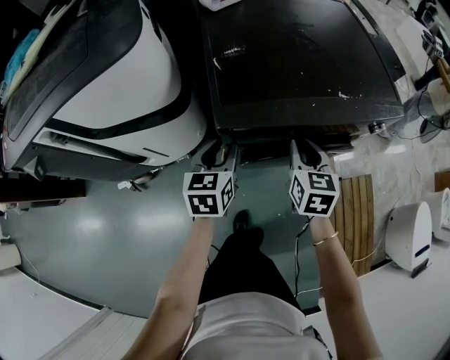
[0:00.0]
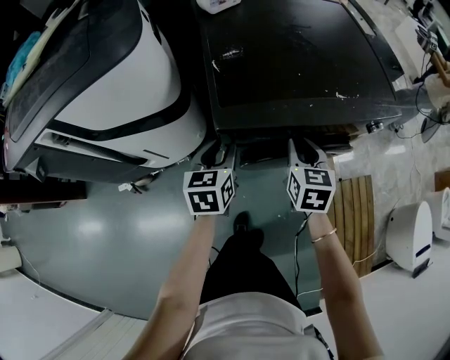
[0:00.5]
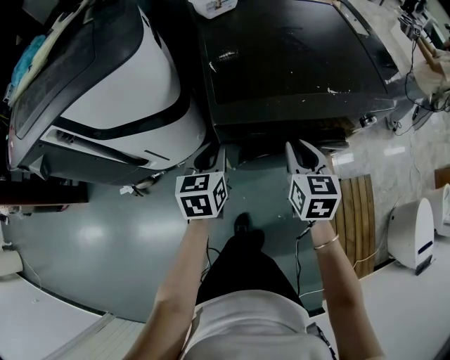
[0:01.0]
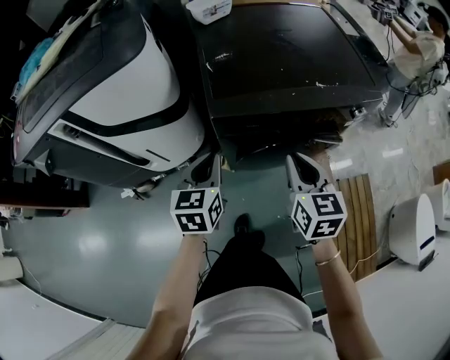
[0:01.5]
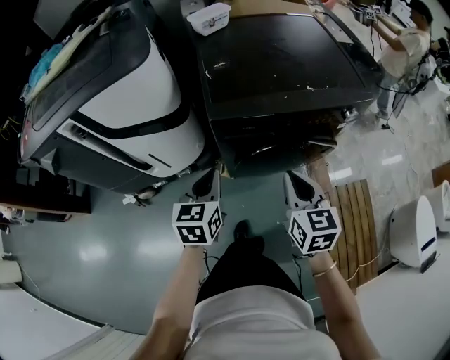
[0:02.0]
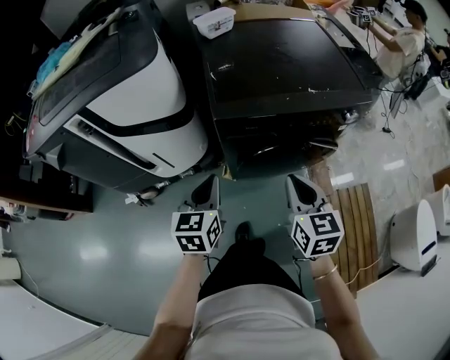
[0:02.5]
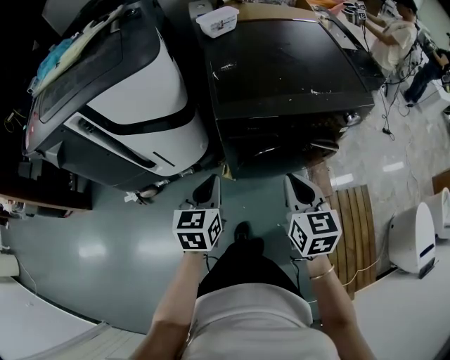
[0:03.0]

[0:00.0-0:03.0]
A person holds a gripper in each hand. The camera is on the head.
0:00.0 to 0:01.5: The grippers both shift backward and upward by some 10 cm. The left gripper closes.
0:01.5 to 0:03.0: Both grippers travel together backward, roughly 5 cm.

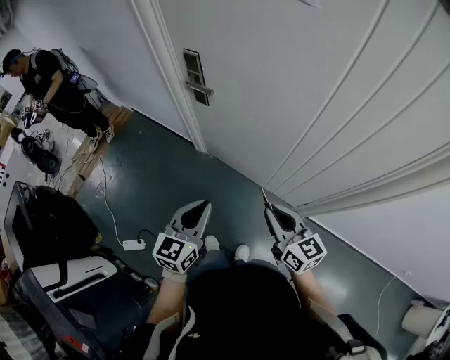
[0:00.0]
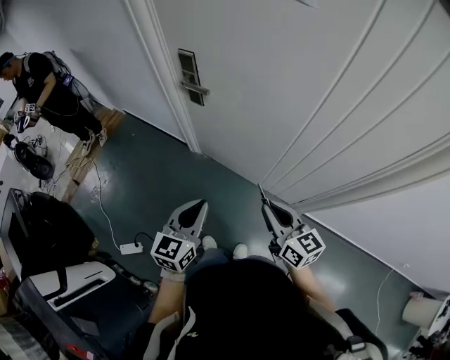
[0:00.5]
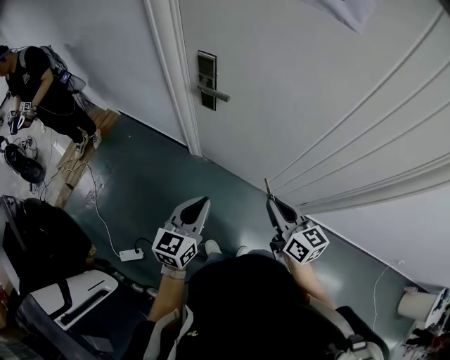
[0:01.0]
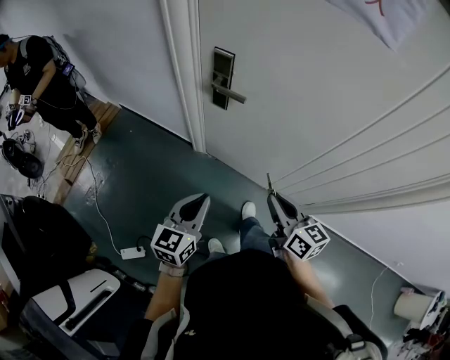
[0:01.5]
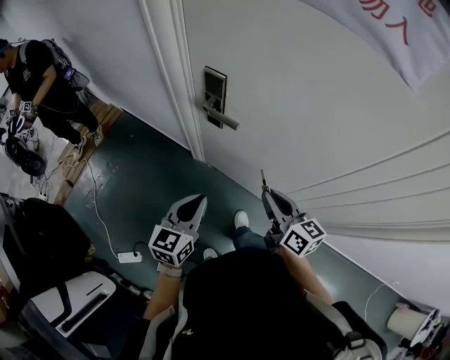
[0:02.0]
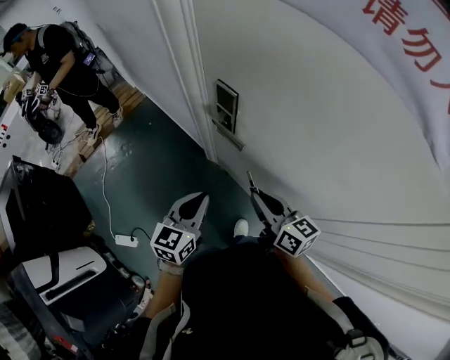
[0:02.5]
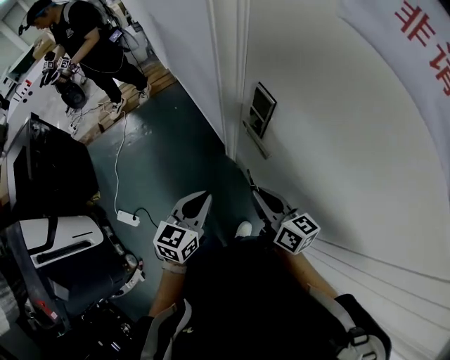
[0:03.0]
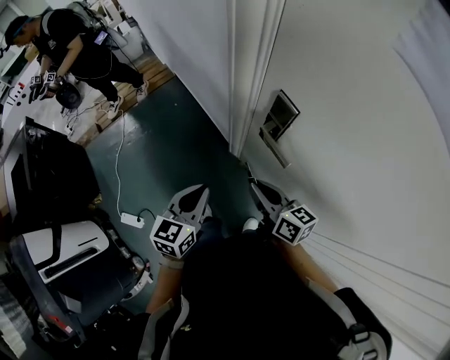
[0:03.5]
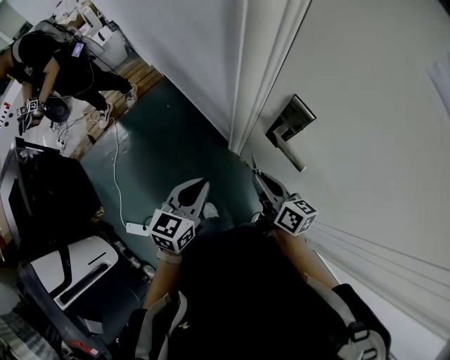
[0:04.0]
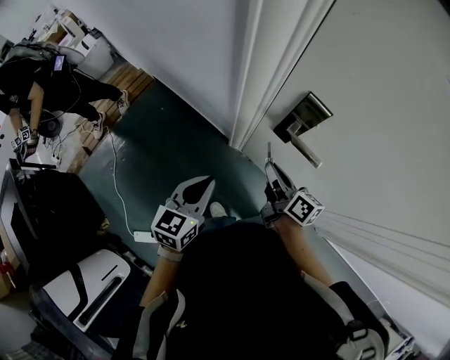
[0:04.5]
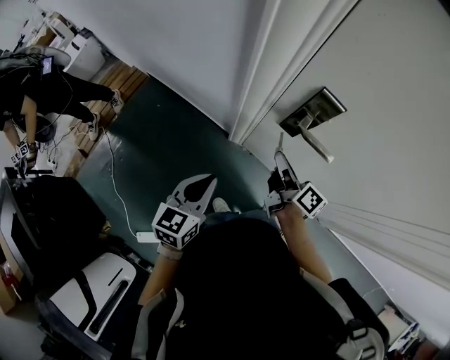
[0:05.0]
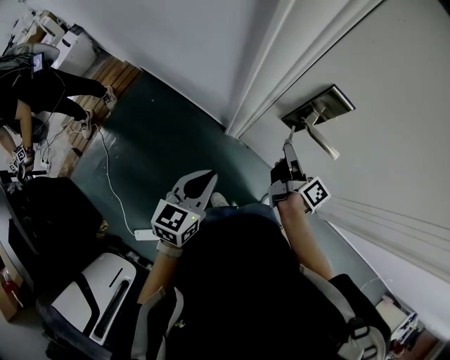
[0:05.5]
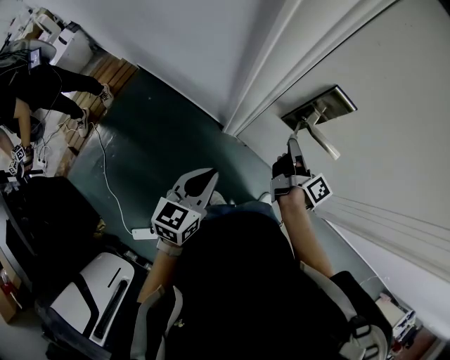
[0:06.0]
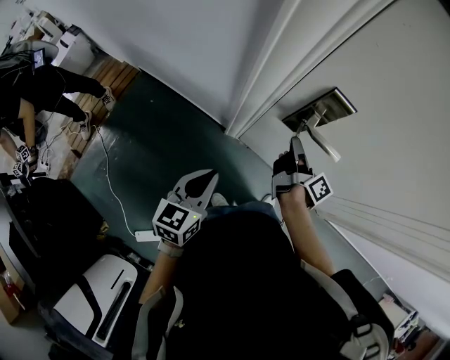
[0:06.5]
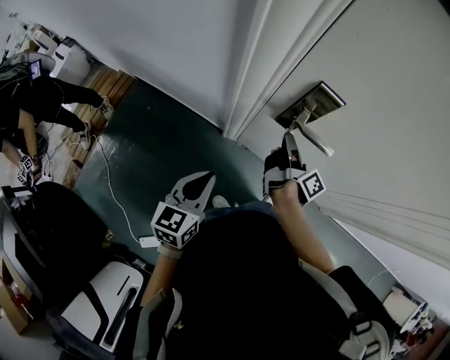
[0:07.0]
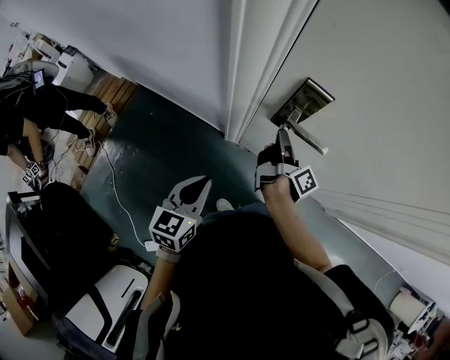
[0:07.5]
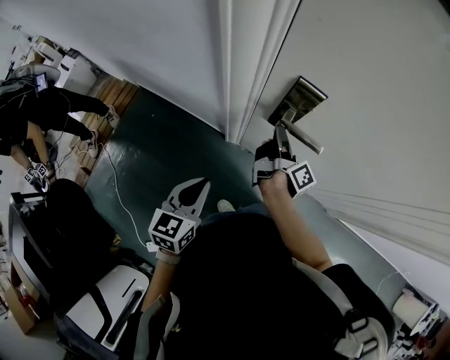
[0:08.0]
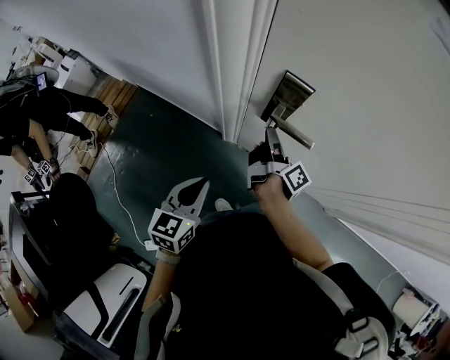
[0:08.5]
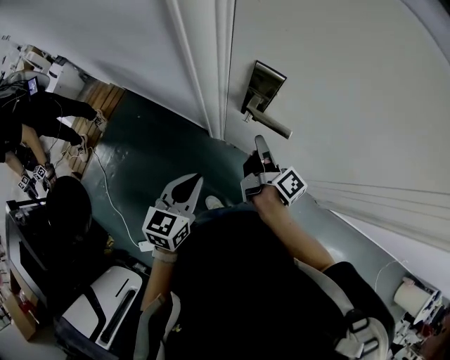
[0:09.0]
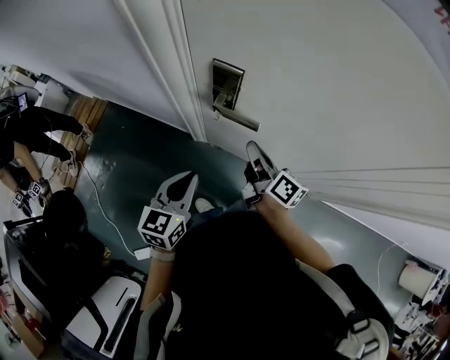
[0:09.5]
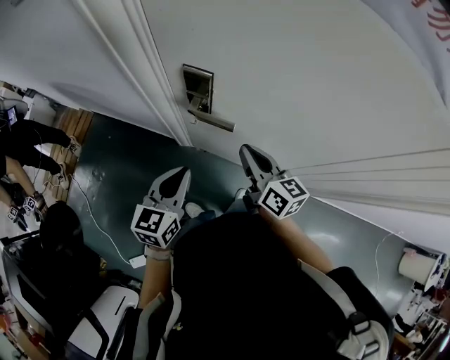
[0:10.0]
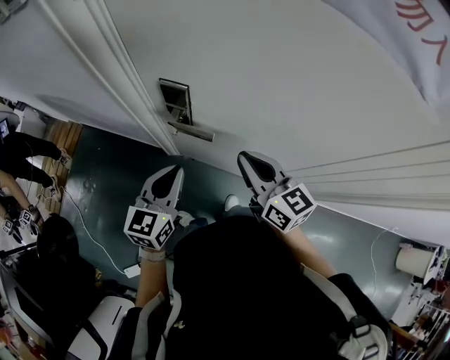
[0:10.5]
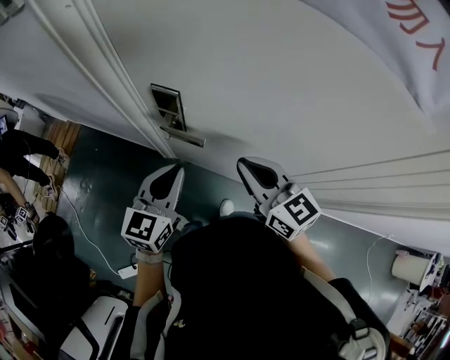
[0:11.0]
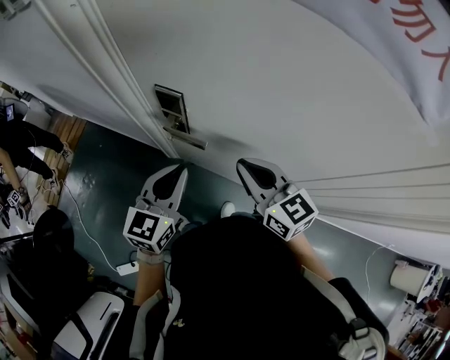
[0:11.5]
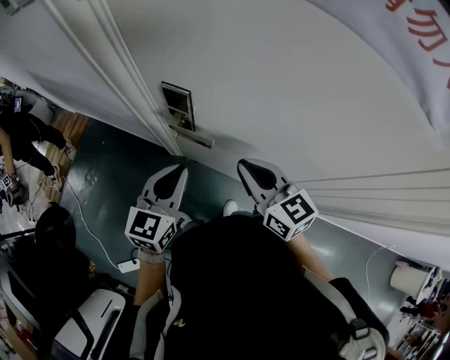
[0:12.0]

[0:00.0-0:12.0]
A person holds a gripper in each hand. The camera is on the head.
0:00.0 to 0:02.0: The grippers both shift forward and to the left by some 25 cm.
0:02.0 to 0:04.0: The left gripper ends up approximately 20 cm from where it was. Meanwhile the right gripper changes place by about 25 cm, and swivels roughly 20 degrees.
0:04.0 to 0:06.0: The right gripper moves some 10 cm, and swivels some 50 degrees. Meanwhile the left gripper ends up about 10 cm from where it was.
0:06.0 to 0:08.0: The grippers stay close to where they were, moving slightly.
0:08.0 to 0:10.0: The left gripper shifts some 15 cm to the right. Meanwhile the right gripper goes about 20 cm to the right, backward and upward, and twists some 60 degrees counterclockwise, seen from behind.
0:10.0 to 0:12.0: The right gripper goes some 5 cm upward, and swivels about 20 degrees. The left gripper travels to the right and upward by approximately 10 cm.

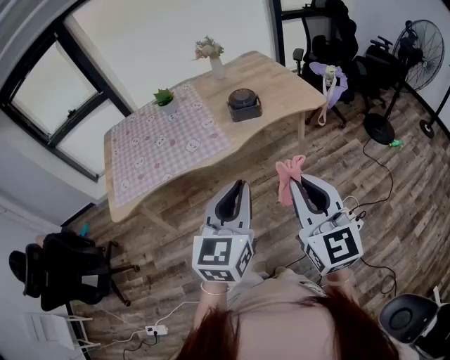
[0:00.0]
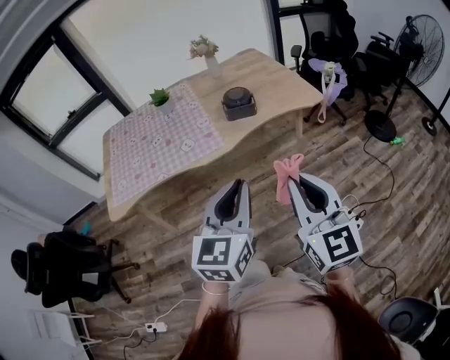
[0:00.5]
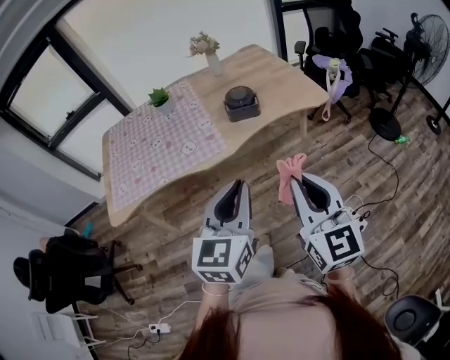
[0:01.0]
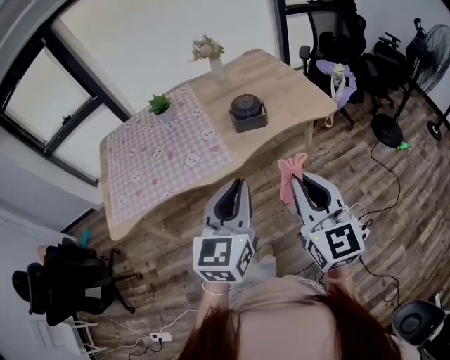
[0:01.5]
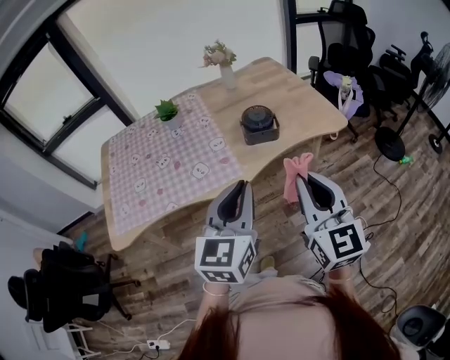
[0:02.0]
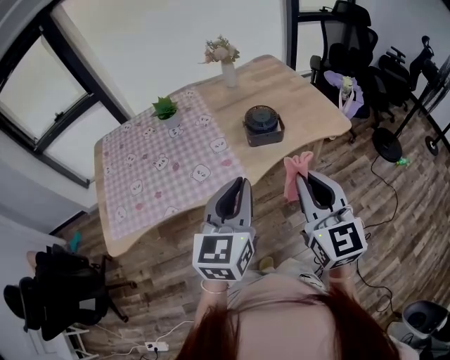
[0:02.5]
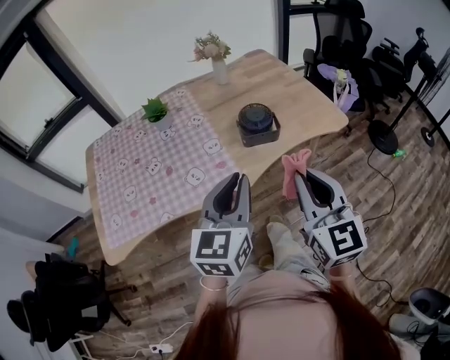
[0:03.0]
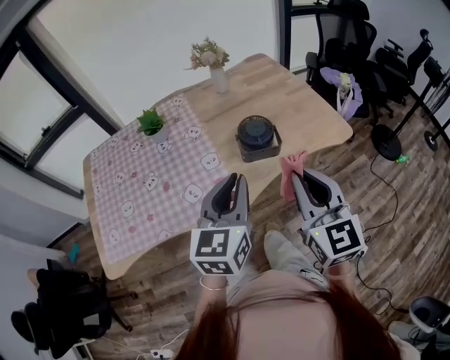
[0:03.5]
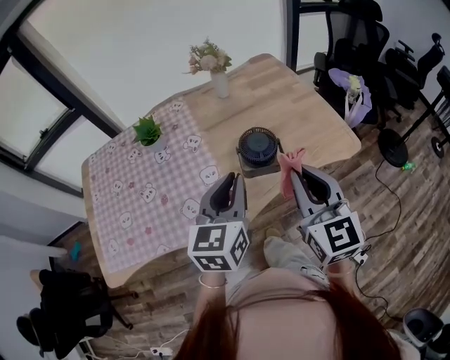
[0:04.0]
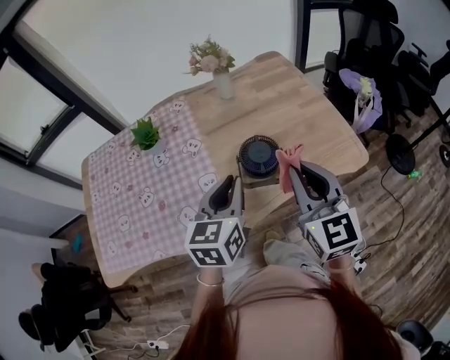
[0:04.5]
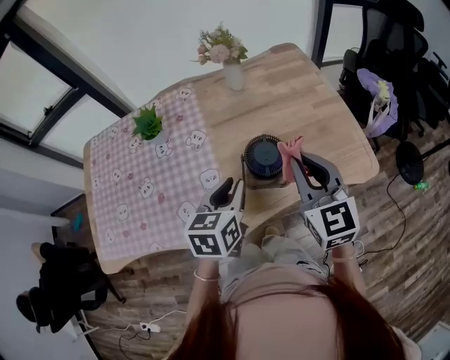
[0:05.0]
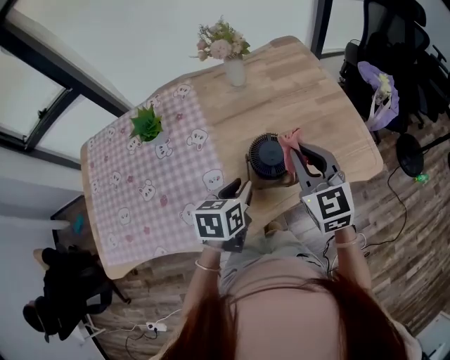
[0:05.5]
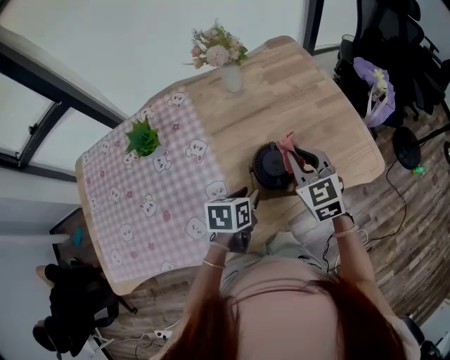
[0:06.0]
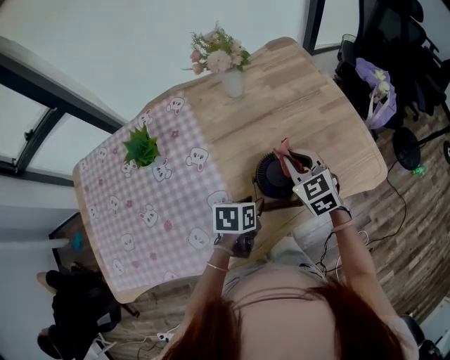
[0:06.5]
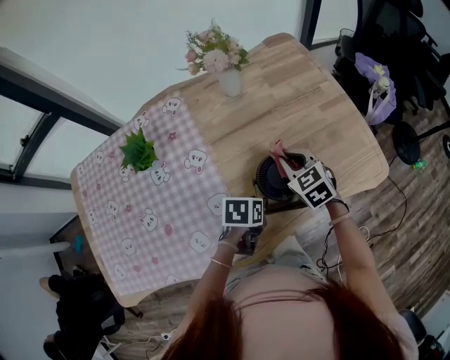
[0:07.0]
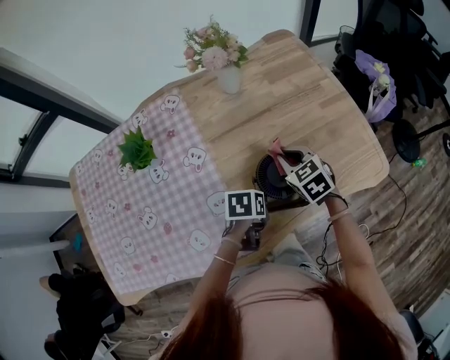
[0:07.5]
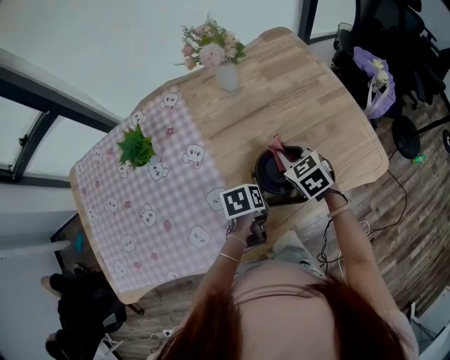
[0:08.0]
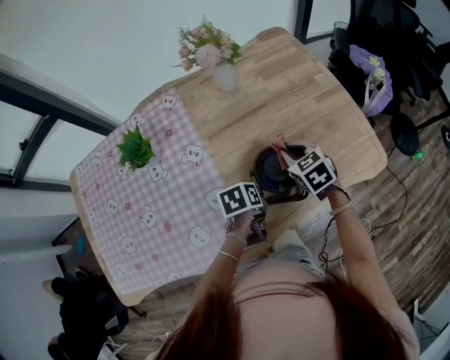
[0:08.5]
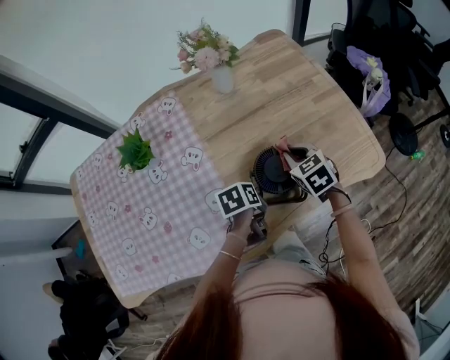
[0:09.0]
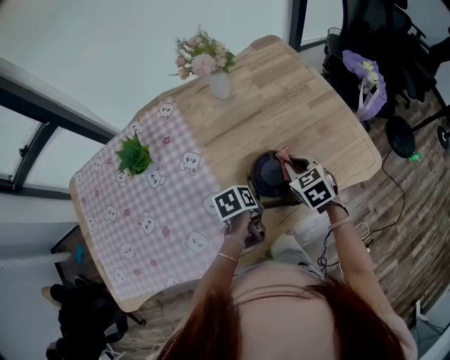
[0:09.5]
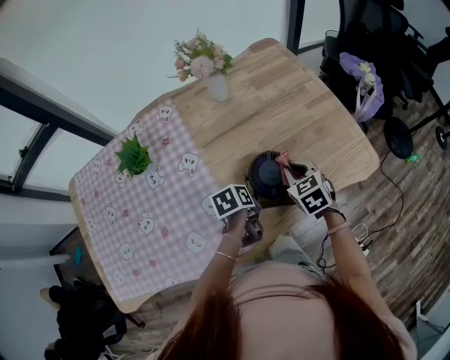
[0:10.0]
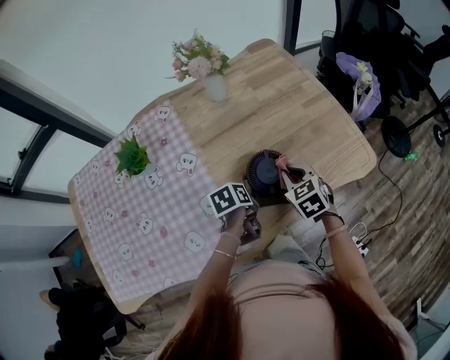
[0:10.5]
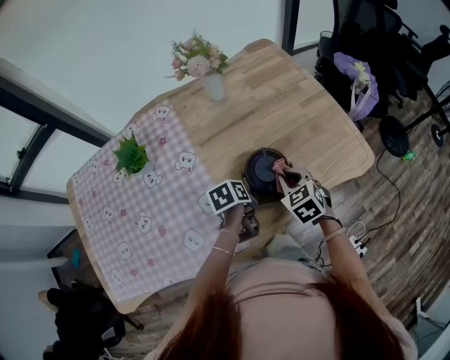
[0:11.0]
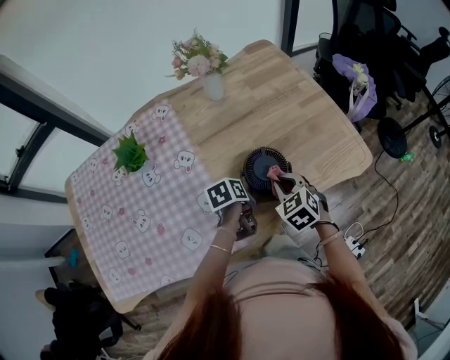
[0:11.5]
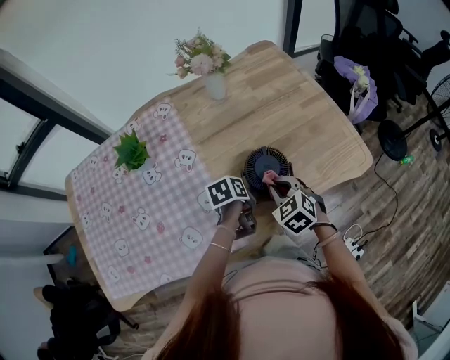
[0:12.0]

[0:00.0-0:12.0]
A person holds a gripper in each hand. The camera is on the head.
0:00.0 to 0:02.0: Both grippers move forward, some 20 cm.
0:02.0 to 0:04.0: The two grippers go approximately 25 cm forward.
0:04.0 to 0:06.0: The right gripper heads forward and downward, covering about 30 cm, and rotates roughly 20 degrees. The left gripper travels downward and forward by roughly 25 cm, tips its fingers downward by about 30 degrees, and opens up.
0:06.0 to 0:08.0: The right gripper goes about 10 cm downward, and swivels some 20 degrees, while the left gripper travels downward by some 5 cm, and swivels about 20 degrees.
0:08.0 to 0:10.0: The right gripper moves to the right, some 5 cm.
0:10.0 to 0:12.0: The right gripper goes roughly 5 cm backward.
